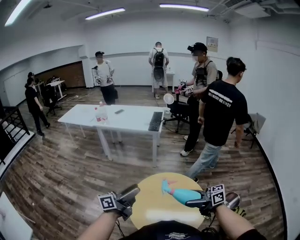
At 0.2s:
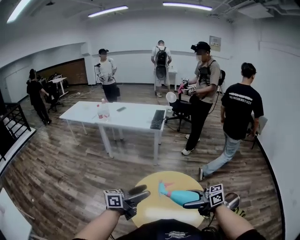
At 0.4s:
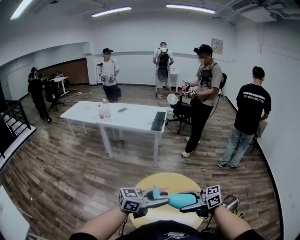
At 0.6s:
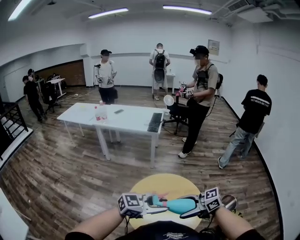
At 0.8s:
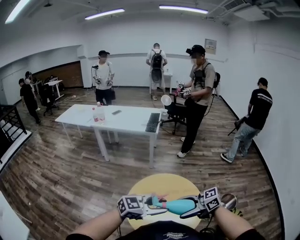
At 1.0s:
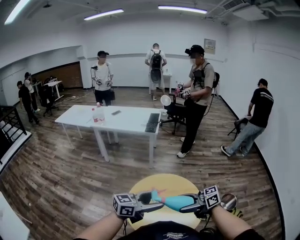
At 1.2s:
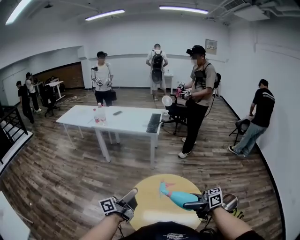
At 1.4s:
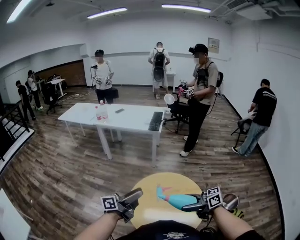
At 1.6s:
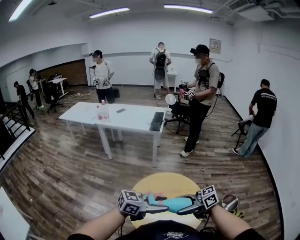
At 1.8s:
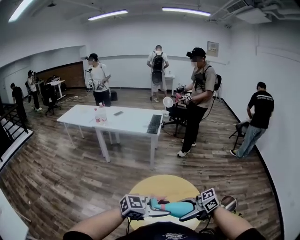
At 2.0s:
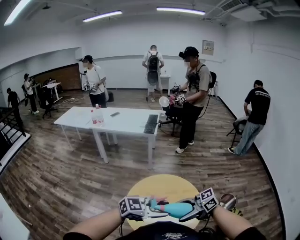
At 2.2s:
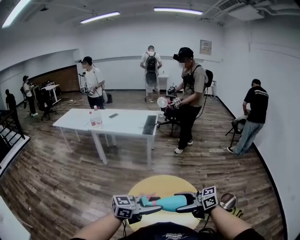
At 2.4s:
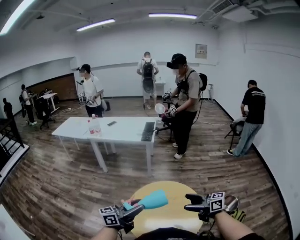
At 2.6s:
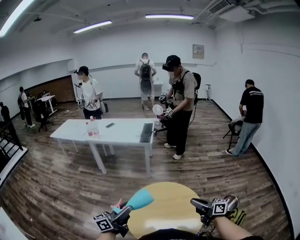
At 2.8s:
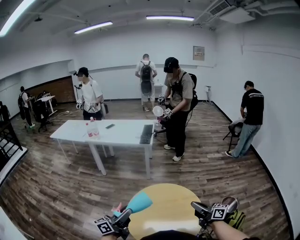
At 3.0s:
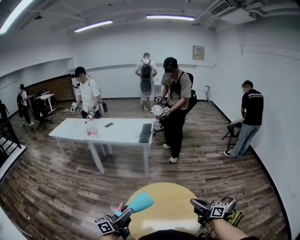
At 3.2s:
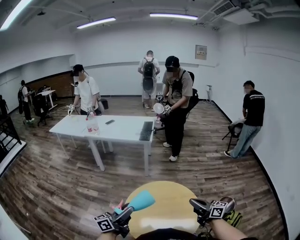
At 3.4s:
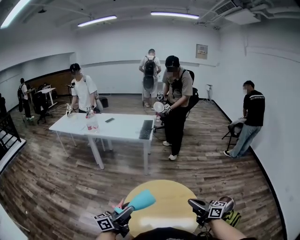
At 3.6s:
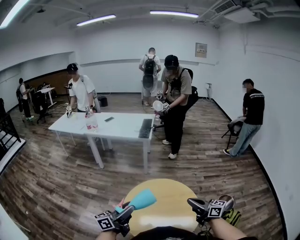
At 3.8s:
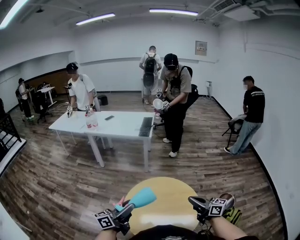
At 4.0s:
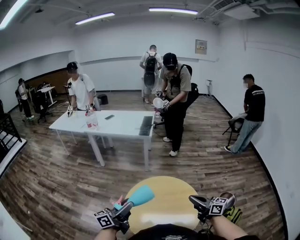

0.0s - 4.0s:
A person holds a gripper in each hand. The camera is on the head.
0.0s - 1.4s: The left gripper closes and opens again.
1.4s - 2.6s: The right gripper shifts by about 10 cm, rotates roughly 30 degrees, and closes its fingers; the left gripper closes up.
2.6s - 4.0s: The grippers make only small movements.

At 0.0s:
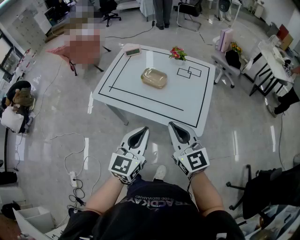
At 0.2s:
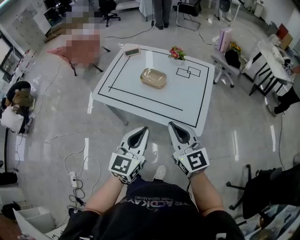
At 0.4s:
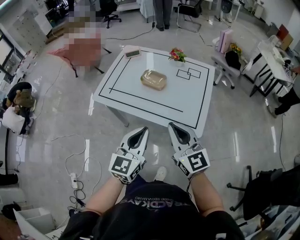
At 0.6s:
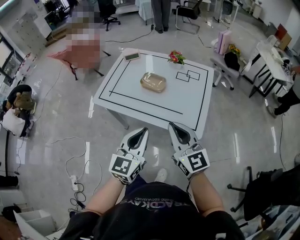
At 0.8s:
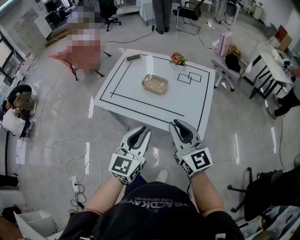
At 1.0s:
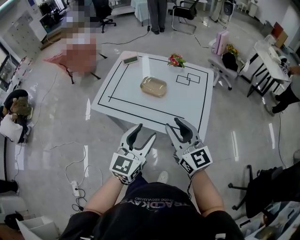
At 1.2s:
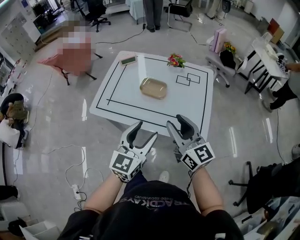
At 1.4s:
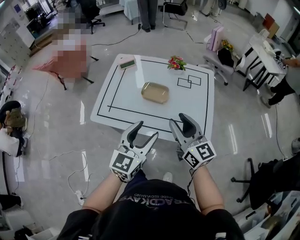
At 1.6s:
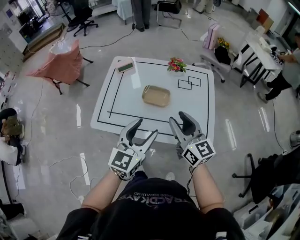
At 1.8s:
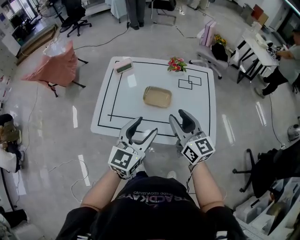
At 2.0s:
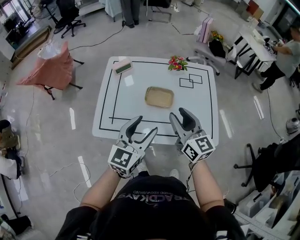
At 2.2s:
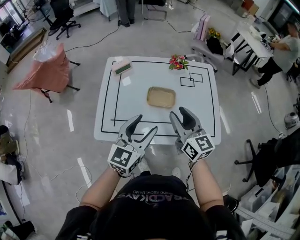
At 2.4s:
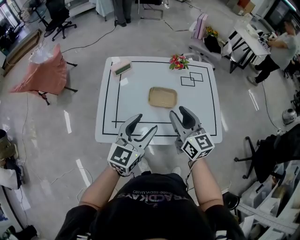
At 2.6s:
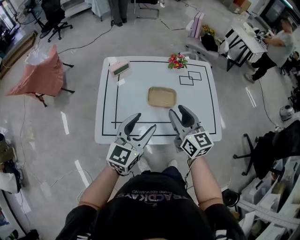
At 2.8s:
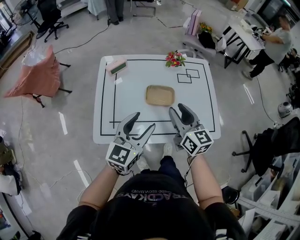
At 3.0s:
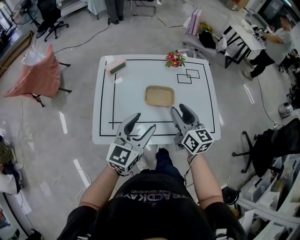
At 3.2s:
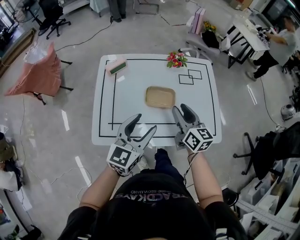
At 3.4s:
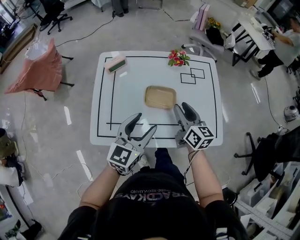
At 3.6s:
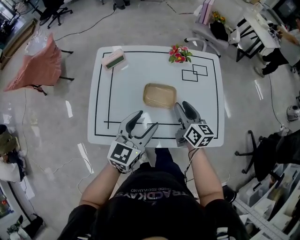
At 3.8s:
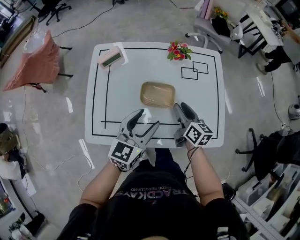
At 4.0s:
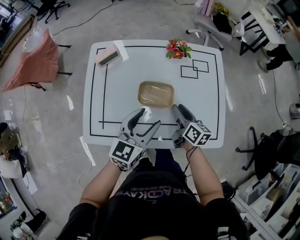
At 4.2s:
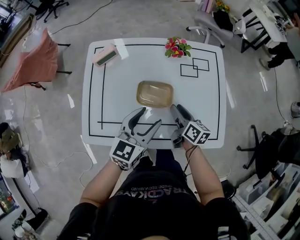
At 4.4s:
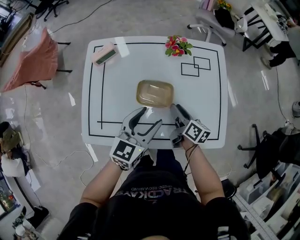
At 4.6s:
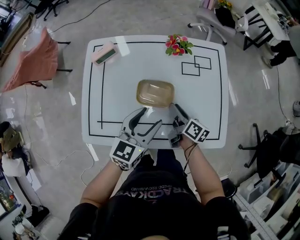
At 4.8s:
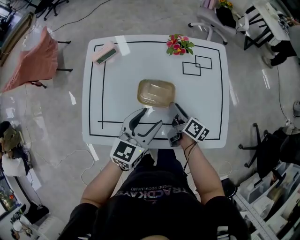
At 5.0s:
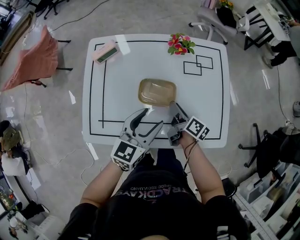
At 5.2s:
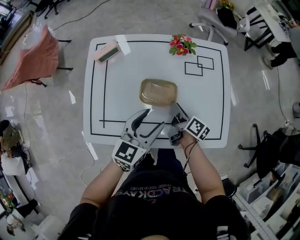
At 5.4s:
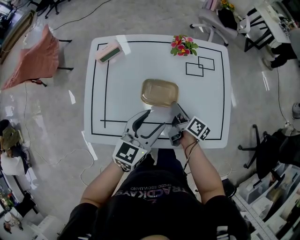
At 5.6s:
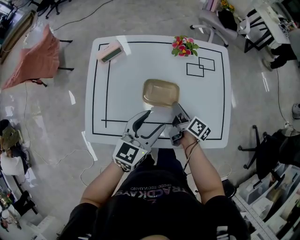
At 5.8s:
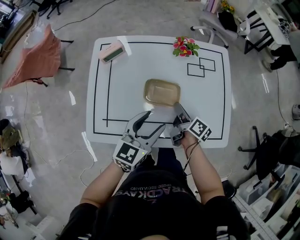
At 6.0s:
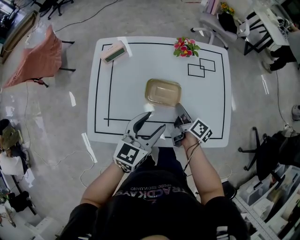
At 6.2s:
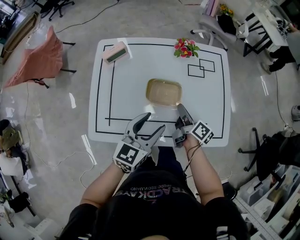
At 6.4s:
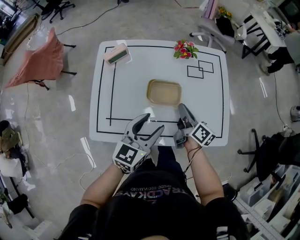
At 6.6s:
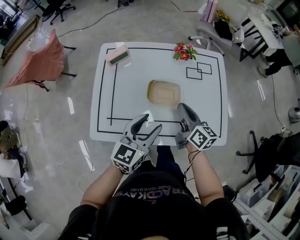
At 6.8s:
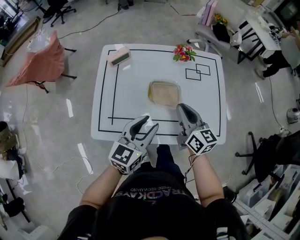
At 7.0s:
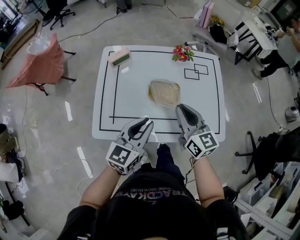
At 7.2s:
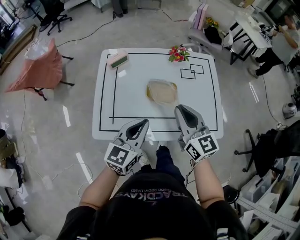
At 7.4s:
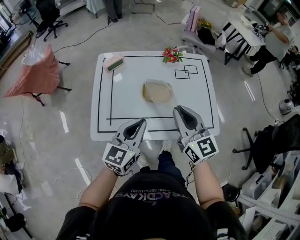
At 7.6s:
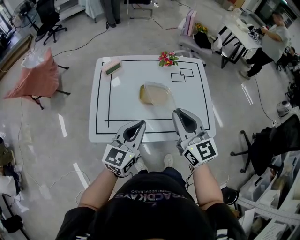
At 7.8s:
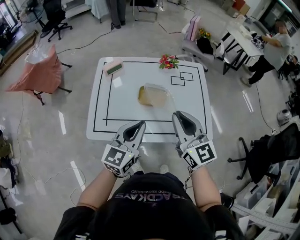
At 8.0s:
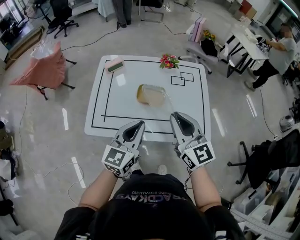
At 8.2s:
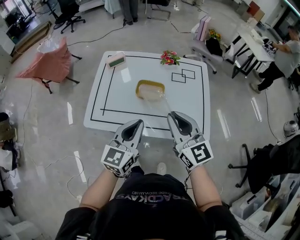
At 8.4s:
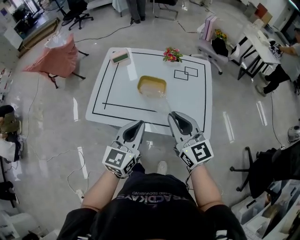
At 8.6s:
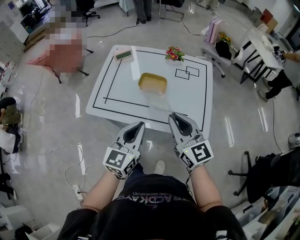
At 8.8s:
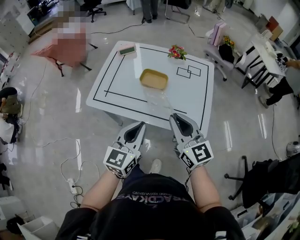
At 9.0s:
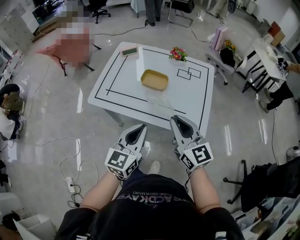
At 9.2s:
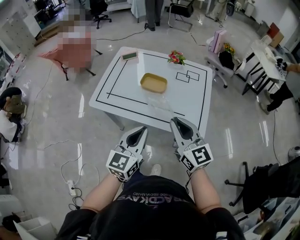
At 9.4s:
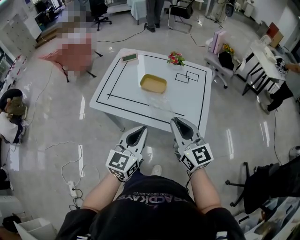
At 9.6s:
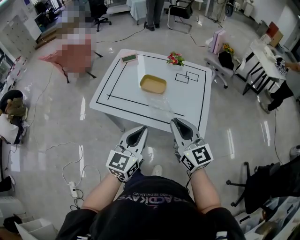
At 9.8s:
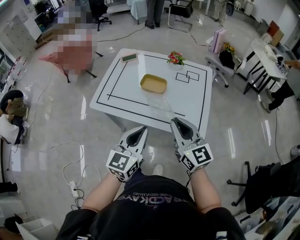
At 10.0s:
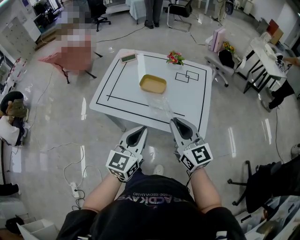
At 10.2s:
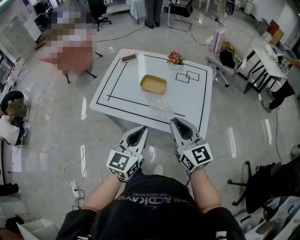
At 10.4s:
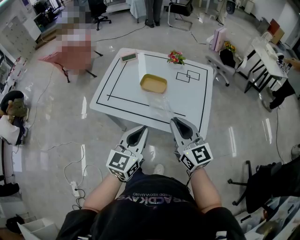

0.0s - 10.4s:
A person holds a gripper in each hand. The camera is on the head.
0.0s - 1.4s: The grippers both shift forward by some 10 cm. The left gripper opens. Meanwhile the right gripper opens its fingers.
1.4s - 3.0s: The right gripper is displaced forward, to the left and downward by roughly 15 cm, and swivels roughly 20 degrees. Meanwhile the left gripper heads to the left and forward, covering about 15 cm.
3.0s - 4.4s: The left gripper moves forward, downward and to the right, approximately 15 cm; the right gripper goes about 20 cm downward and forward, and swivels some 40 degrees.
4.4s - 6.0s: The grippers make only small movements.
6.0s - 7.4s: The left gripper heads backward, upward and to the left, covering about 15 cm, and closes up. Meanwhile the right gripper heads upward and backward, covering approximately 30 cm, and twists roughly 70 degrees counterclockwise, seen from behind.
7.4s - 9.0s: The grippers both shift backward and to the right by roughly 20 cm. The left gripper changes its angle by about 20 degrees.
9.0s - 10.4s: There are only small adjustments of the grippers.

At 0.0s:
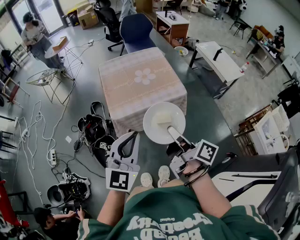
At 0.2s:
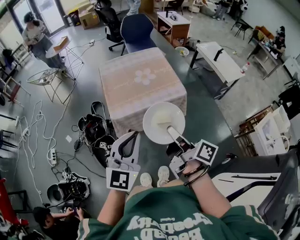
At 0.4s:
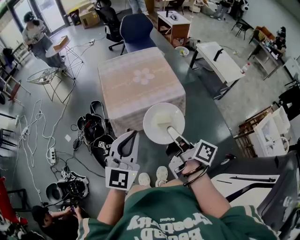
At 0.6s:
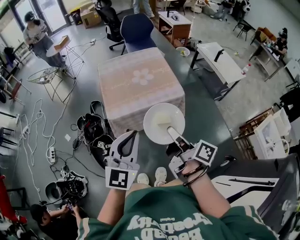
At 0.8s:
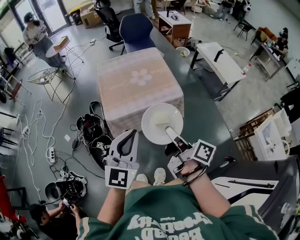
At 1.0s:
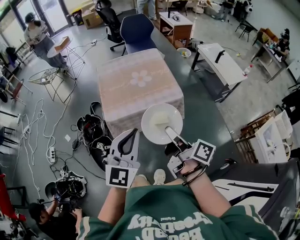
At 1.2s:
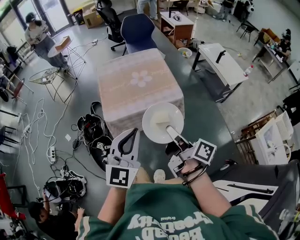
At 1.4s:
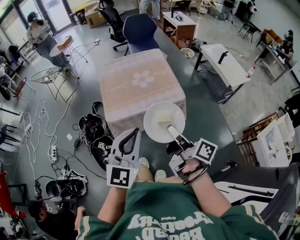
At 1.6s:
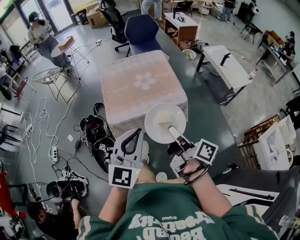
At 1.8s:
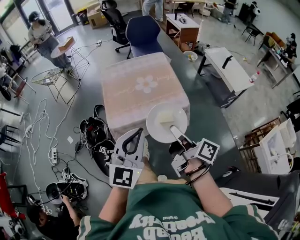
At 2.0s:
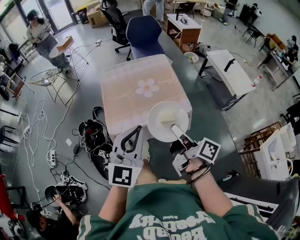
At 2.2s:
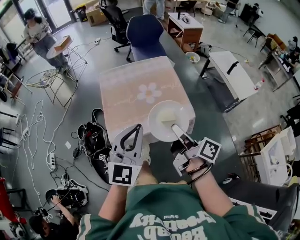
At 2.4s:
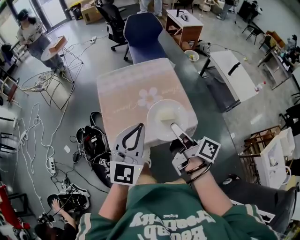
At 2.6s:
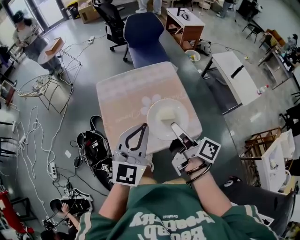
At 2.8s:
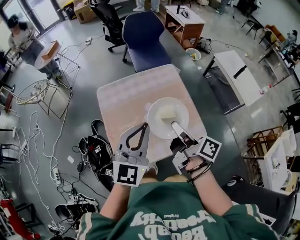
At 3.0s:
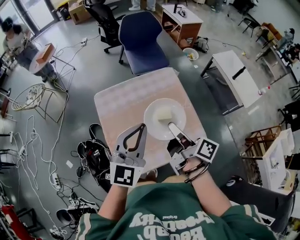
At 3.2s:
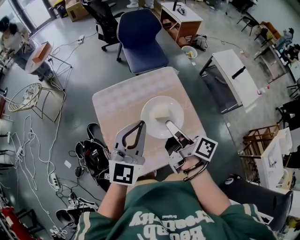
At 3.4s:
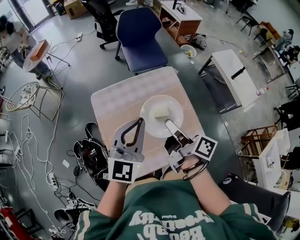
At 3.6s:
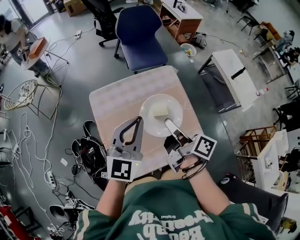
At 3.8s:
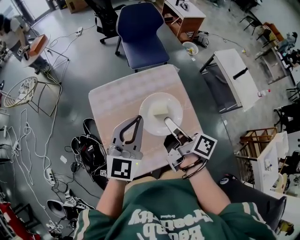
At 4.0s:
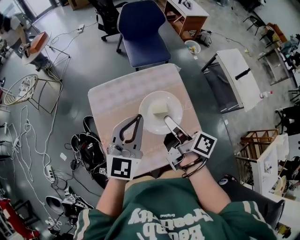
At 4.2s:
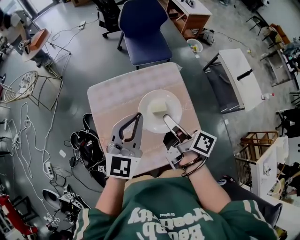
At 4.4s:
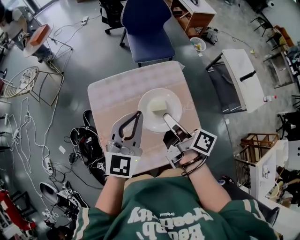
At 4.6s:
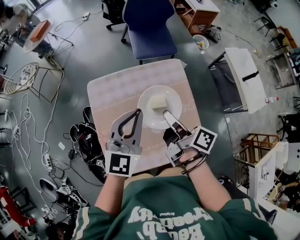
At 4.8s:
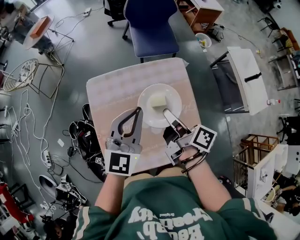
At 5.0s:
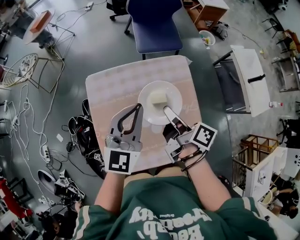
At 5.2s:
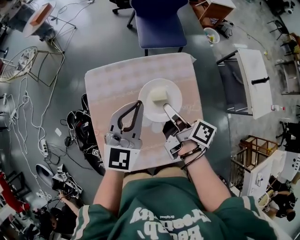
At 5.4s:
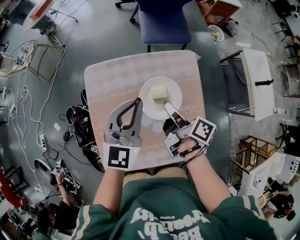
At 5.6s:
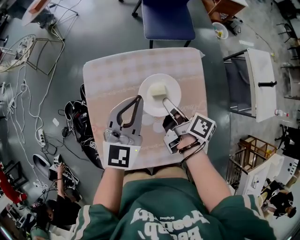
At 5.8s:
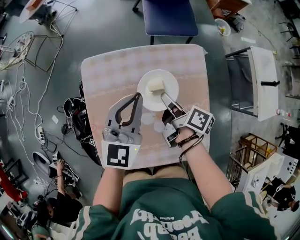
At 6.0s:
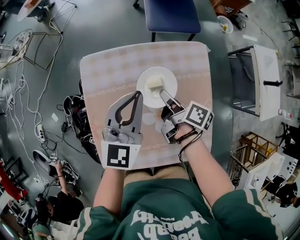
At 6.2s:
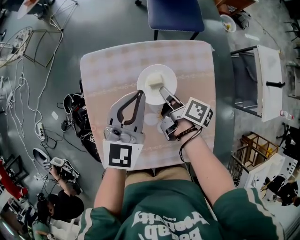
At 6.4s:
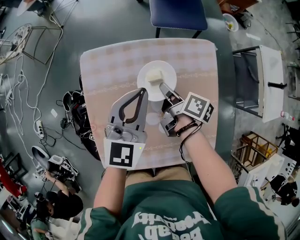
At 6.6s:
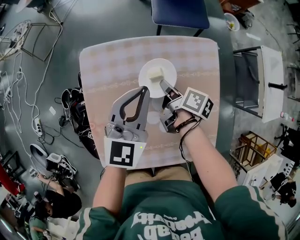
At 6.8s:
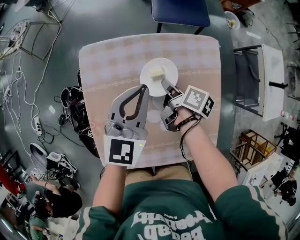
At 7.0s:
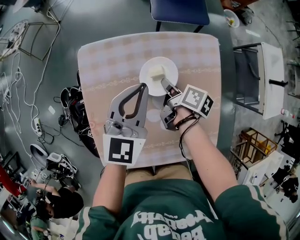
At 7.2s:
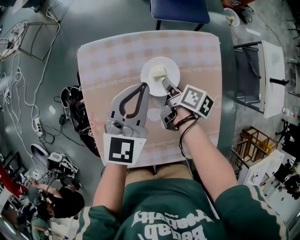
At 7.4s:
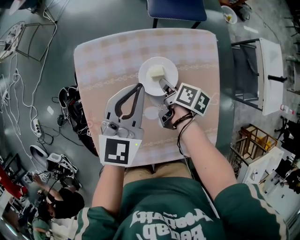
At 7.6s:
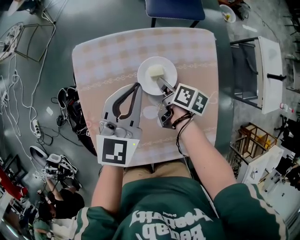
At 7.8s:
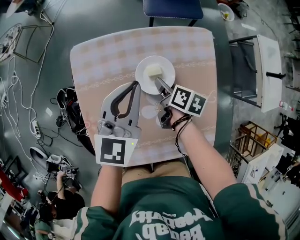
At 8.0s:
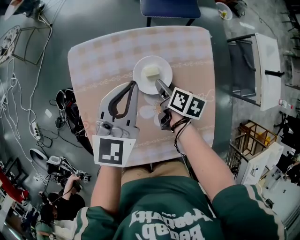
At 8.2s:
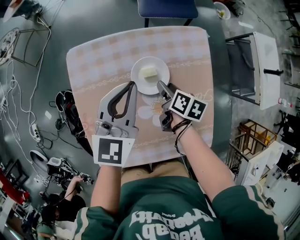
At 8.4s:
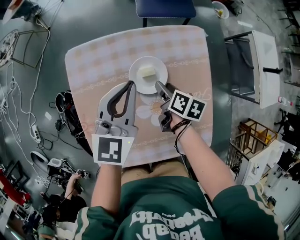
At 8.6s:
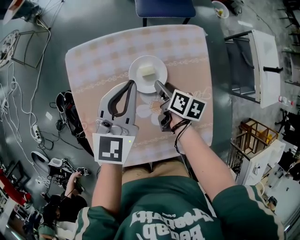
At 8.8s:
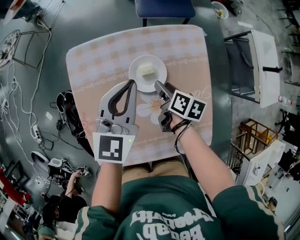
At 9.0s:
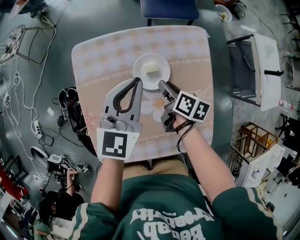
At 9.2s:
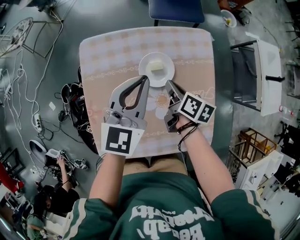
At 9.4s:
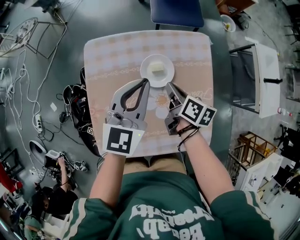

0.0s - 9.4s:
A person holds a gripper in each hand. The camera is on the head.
0.0s - 1.6s: Both grippers travel together to the right and forward, roughly 10 cm.
1.6s - 3.2s: Both grippers are carried forward, about 40 cm.
3.2s - 4.8s: Both grippers travel together forward and downward, some 10 cm.
4.8s - 6.2s: The grippers both shift downward and forward by about 15 cm.
6.2s - 7.8s: The right gripper shifts some 10 cm downward, changes its angle by some 30 degrees, and opens.
7.8s - 9.4s: The right gripper heads upward, covering some 10 cm, and closes its fingers; the left gripper changes place by approximately 5 cm.
